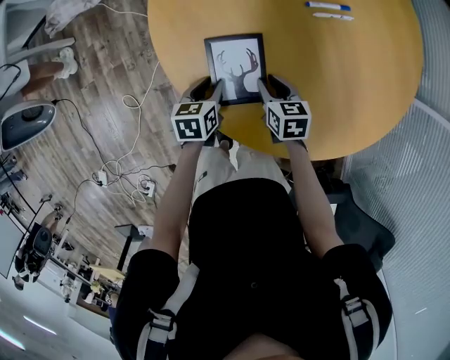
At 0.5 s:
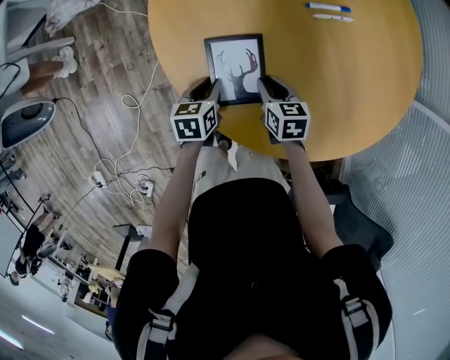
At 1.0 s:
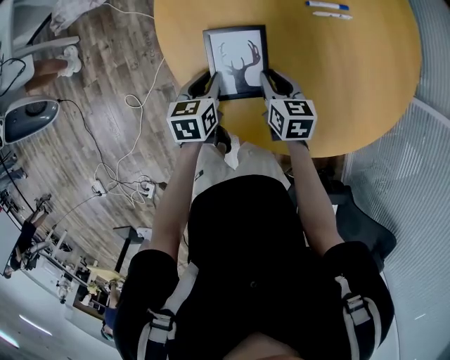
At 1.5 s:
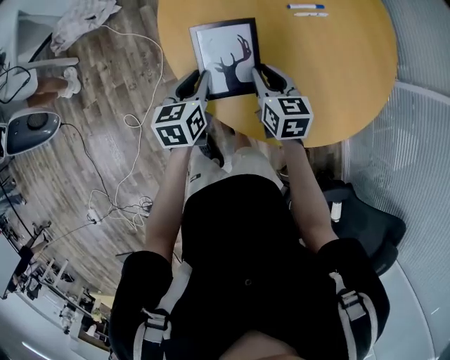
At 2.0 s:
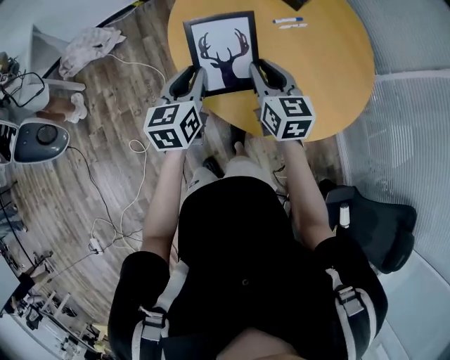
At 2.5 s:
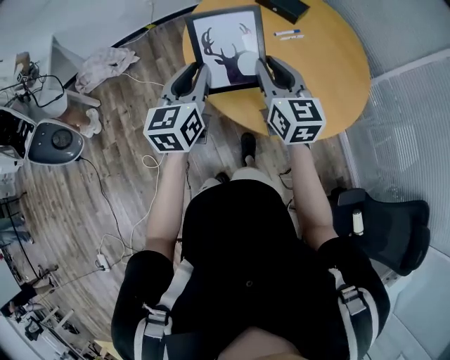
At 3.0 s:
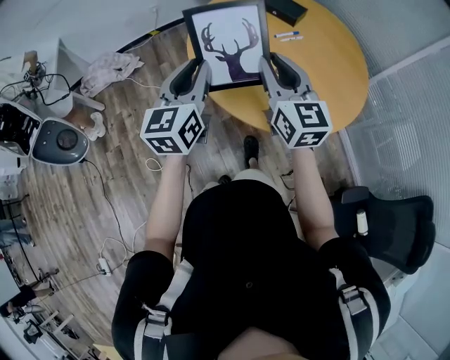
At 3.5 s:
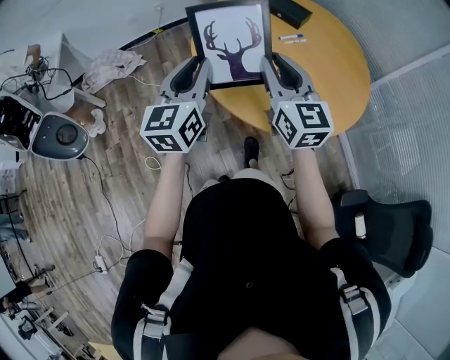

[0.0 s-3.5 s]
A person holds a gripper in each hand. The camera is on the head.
0.0 to 2.0 s: The grippers both shift upward by roughly 30 cm. The left gripper points its fingers roughly 30 degrees further upward. Meanwhile the right gripper rotates some 30 degrees.
2.0 to 3.5 s: The two grippers go about 20 cm upward and backward. The left gripper rotates approximately 20 degrees; the right gripper turns by roughly 20 degrees.

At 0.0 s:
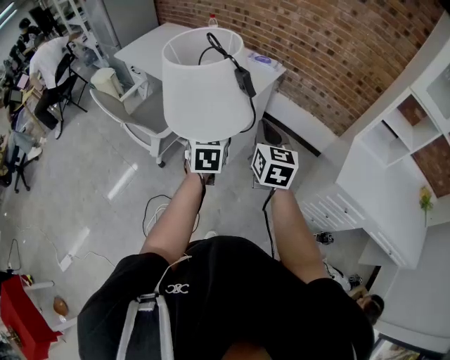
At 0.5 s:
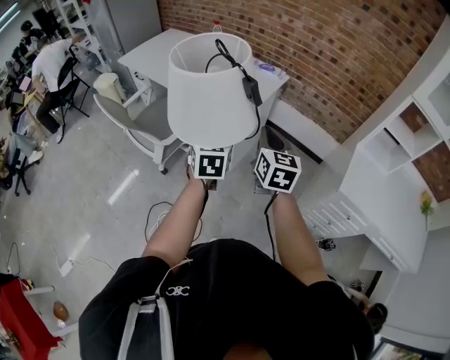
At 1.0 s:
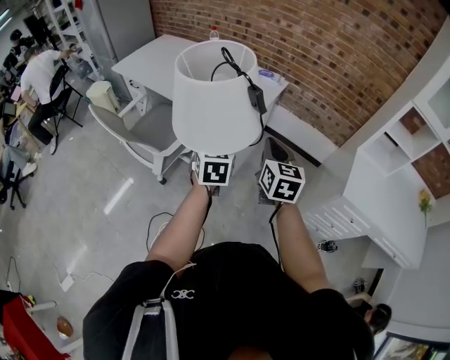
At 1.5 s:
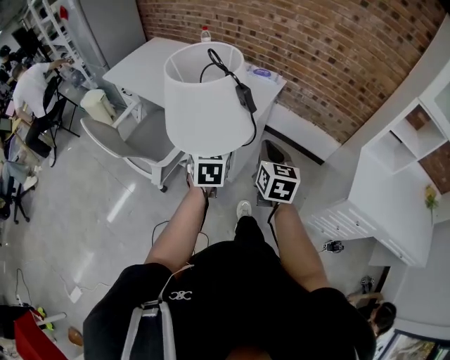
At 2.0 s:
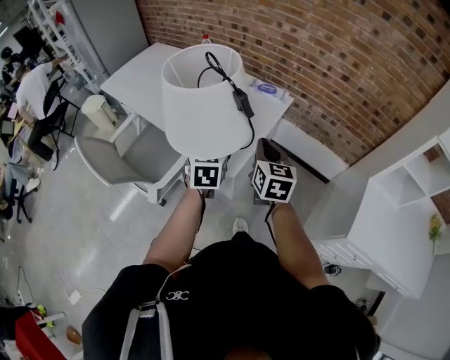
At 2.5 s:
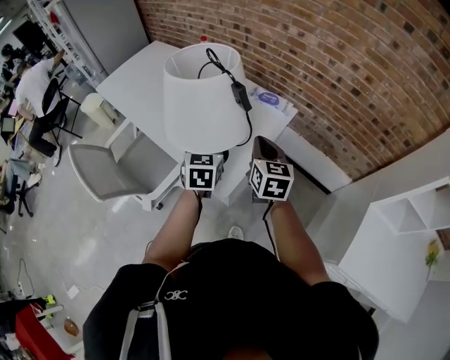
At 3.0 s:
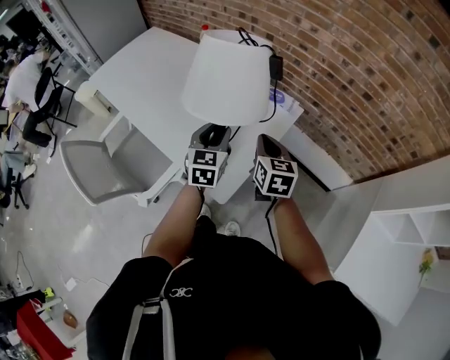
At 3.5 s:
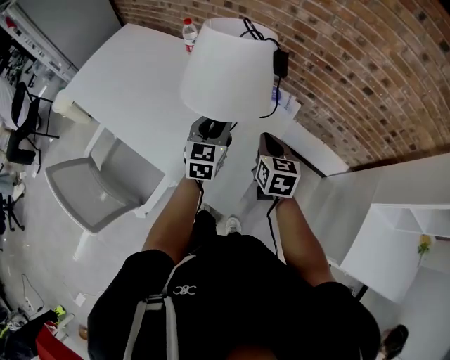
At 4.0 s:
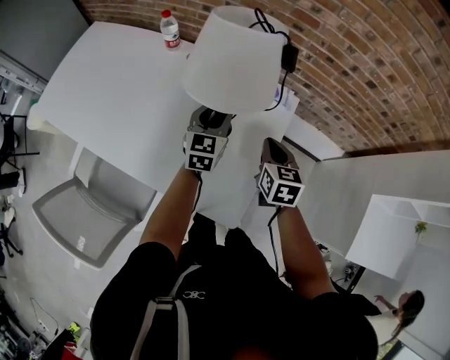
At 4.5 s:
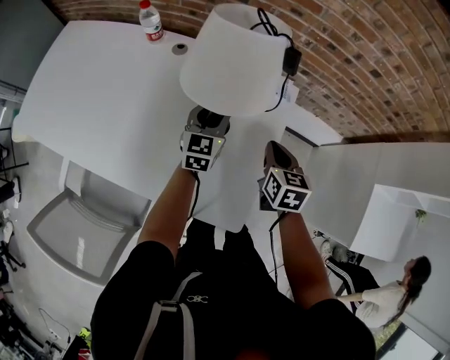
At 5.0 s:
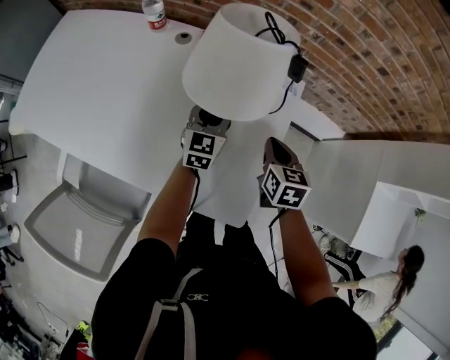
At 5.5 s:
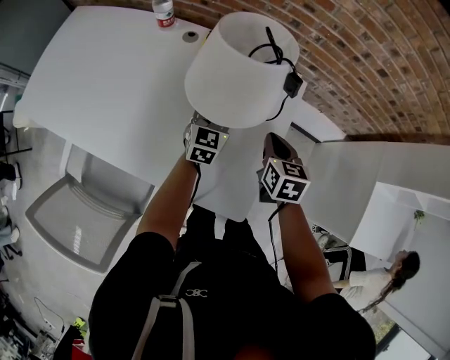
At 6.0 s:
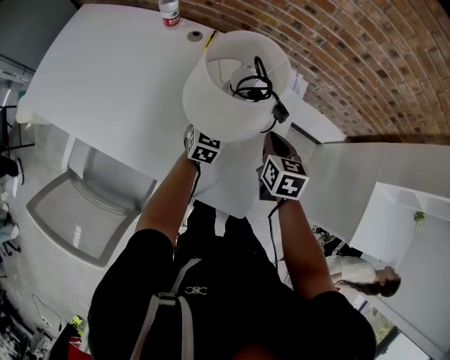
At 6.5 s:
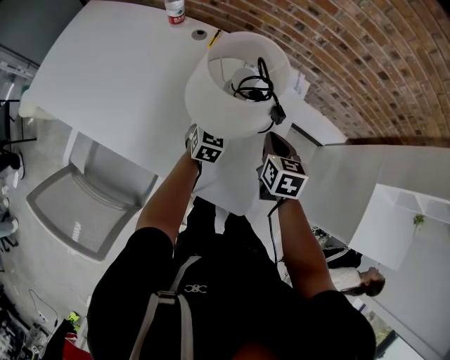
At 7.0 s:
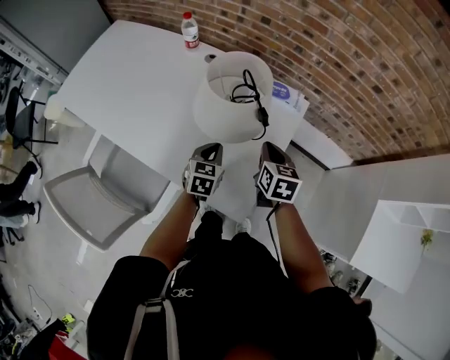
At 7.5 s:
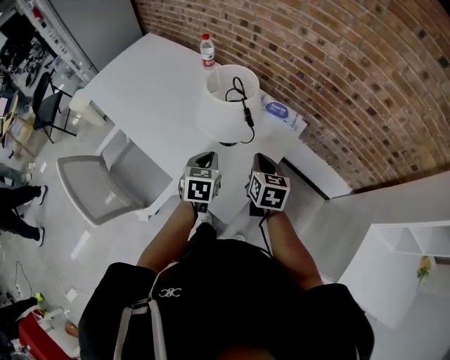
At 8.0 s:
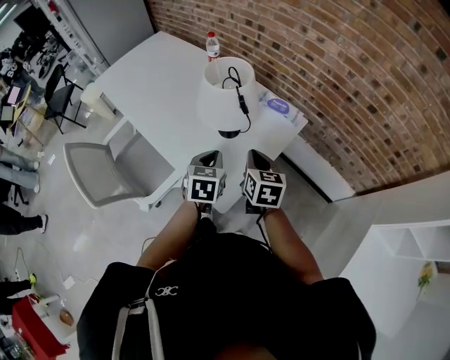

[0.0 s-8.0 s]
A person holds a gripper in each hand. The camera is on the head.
0.0 to 2.0 s: The two grippers go approximately 25 cm forward.
2.0 to 4.0 s: The left gripper is displaced forward by some 35 cm, and turns by approximately 20 degrees; the right gripper is displaced forward and downward by approximately 30 cm, and swivels approximately 20 degrees.
4.0 to 6.0 s: The left gripper moves downward, roughly 10 cm.
6.0 to 8.0 s: The right gripper shifts some 10 cm upward, and changes its angle by roughly 20 degrees, while the left gripper changes place by approximately 25 cm, changes its angle by some 30 degrees, and closes its fingers.

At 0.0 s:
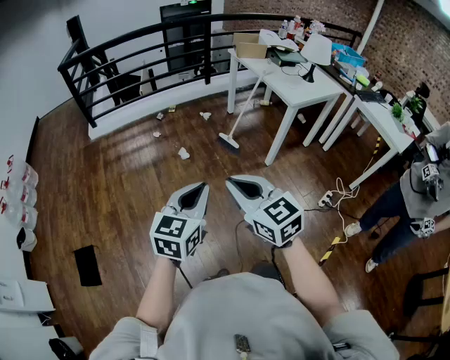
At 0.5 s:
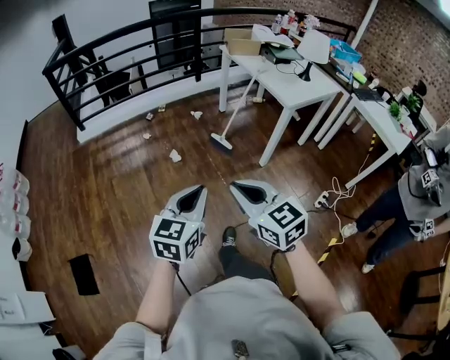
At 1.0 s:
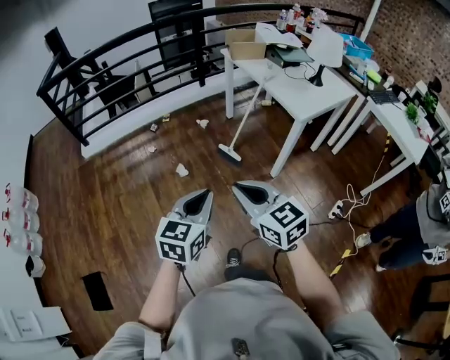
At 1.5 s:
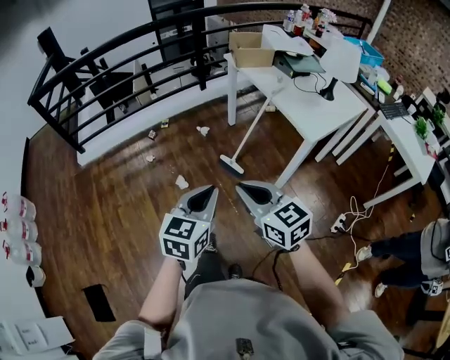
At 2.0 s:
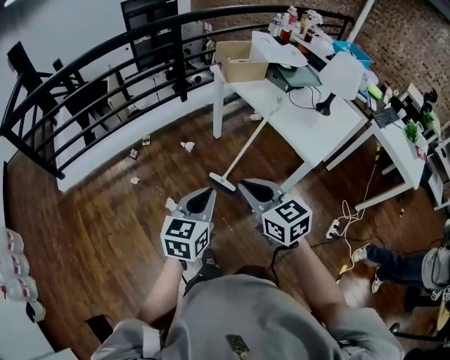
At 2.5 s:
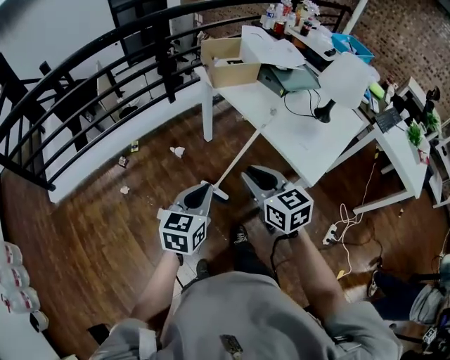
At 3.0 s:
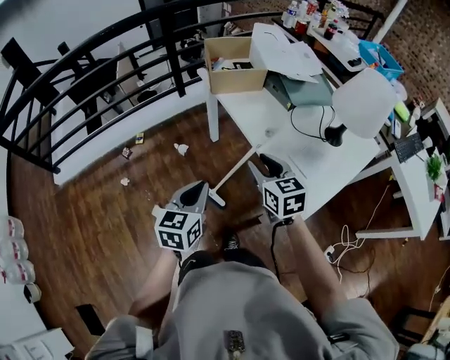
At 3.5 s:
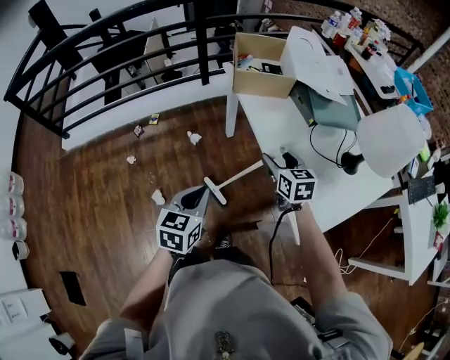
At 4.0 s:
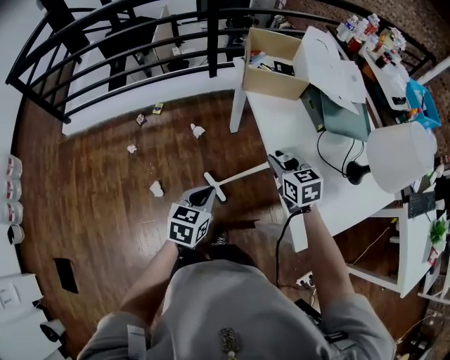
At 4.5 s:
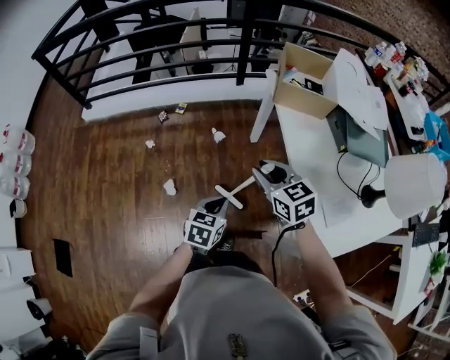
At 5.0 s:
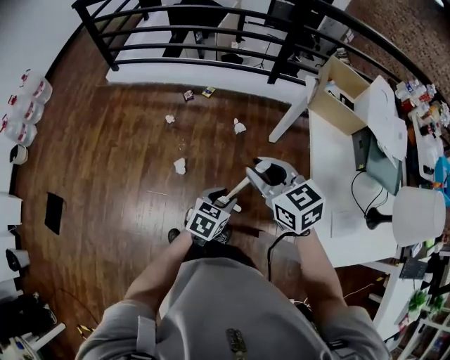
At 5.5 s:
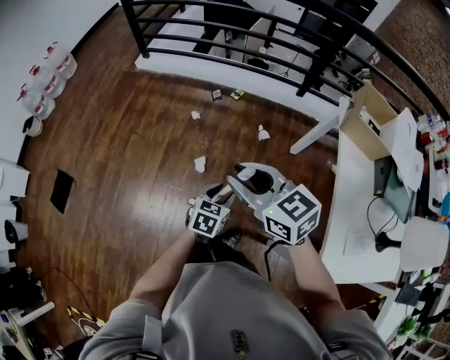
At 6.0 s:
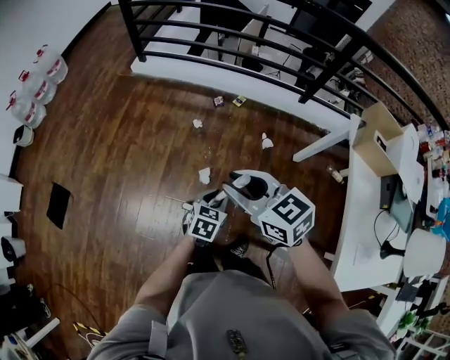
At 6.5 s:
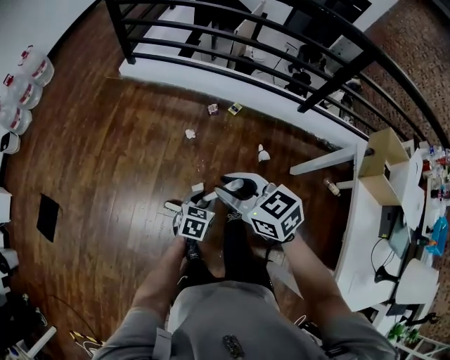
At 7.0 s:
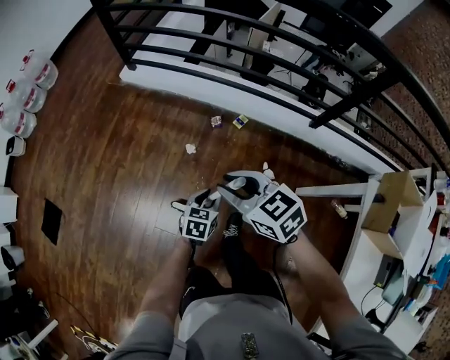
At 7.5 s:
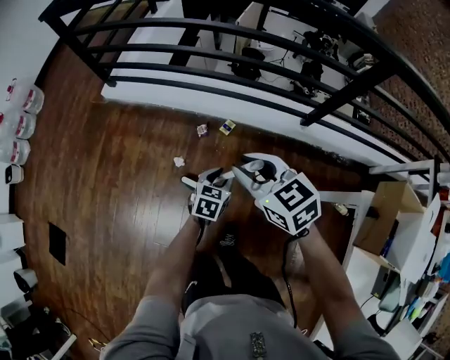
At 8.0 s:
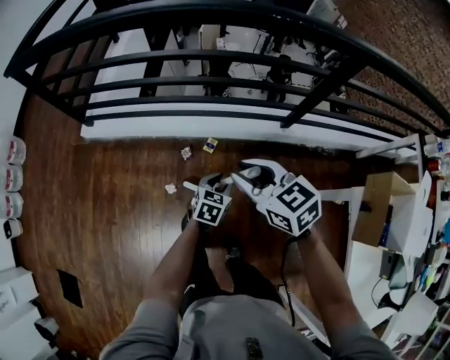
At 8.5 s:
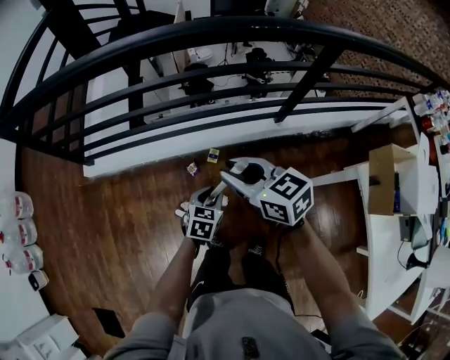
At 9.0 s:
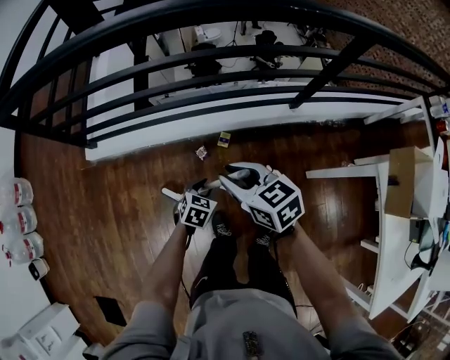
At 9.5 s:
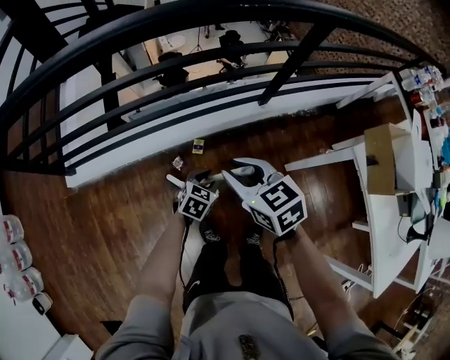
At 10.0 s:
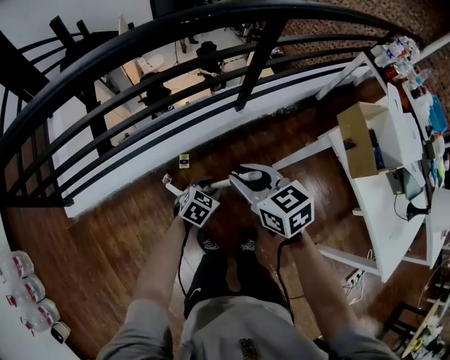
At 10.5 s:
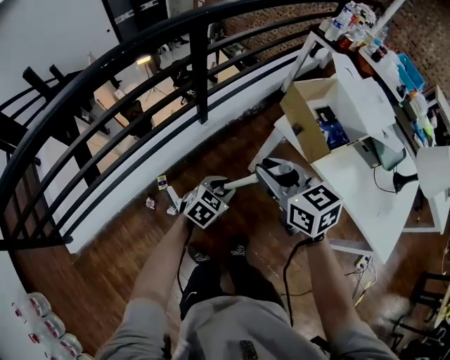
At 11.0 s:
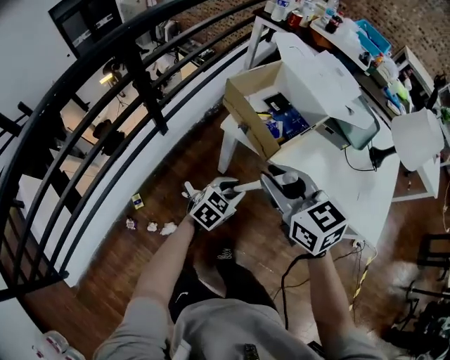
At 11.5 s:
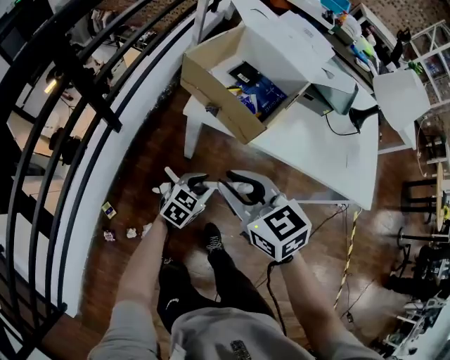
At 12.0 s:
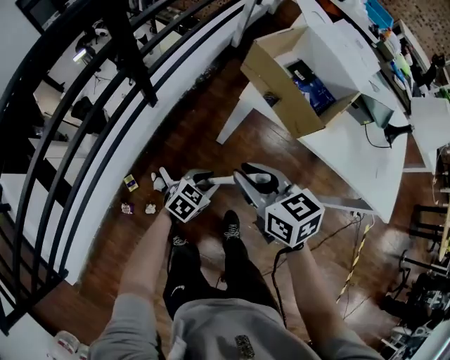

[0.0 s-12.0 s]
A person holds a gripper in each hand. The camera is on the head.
0.0 to 2.0 s: The pair of grippers is taken forward, roughly 60 cm.
2.0 to 4.0 s: Both grippers travel together forward, to the right and downward, some 40 cm. The right gripper opens. Meanwhile the left gripper rotates some 20 degrees.
4.0 to 6.0 s: The right gripper changes place by roughly 50 cm, and rotates about 50 degrees, while the left gripper moves approximately 35 cm, swivels approximately 20 degrees, and opens up.
6.0 to 8.0 s: The pair of grippers is taken forward and to the right, about 50 cm.
8.0 to 10.0 s: The right gripper moves some 5 cm downward and comes back, and changes its angle by roughly 40 degrees, while the left gripper moves roughly 5 cm downward and comes back, and changes its angle by about 40 degrees.
10.0 to 12.0 s: The right gripper moves some 10 cm upward and comes back, and turns by roughly 40 degrees. The left gripper travels upward and back again, roughly 10 cm each way, and changes its angle by some 40 degrees.

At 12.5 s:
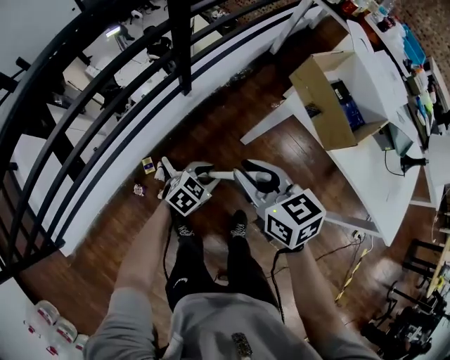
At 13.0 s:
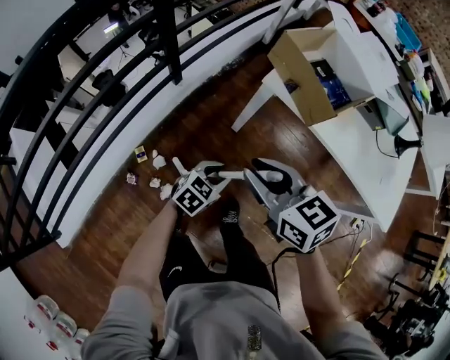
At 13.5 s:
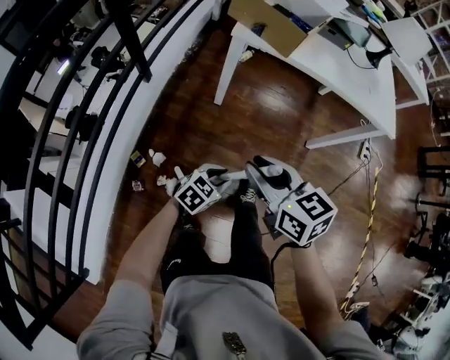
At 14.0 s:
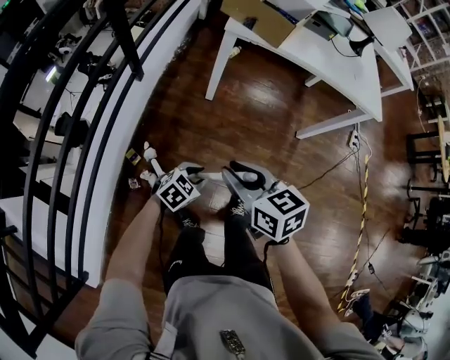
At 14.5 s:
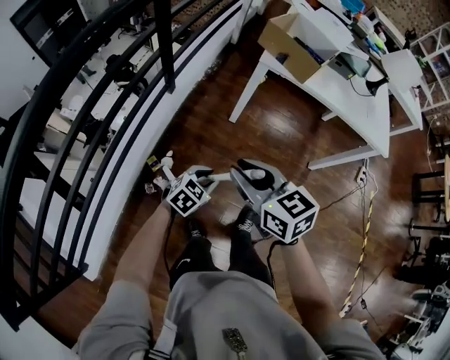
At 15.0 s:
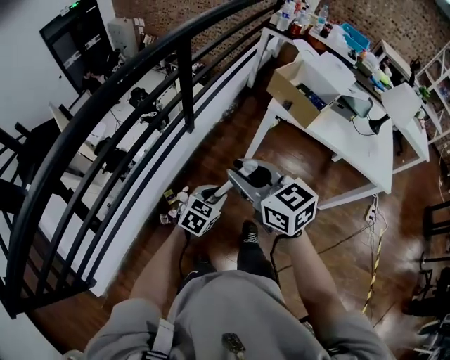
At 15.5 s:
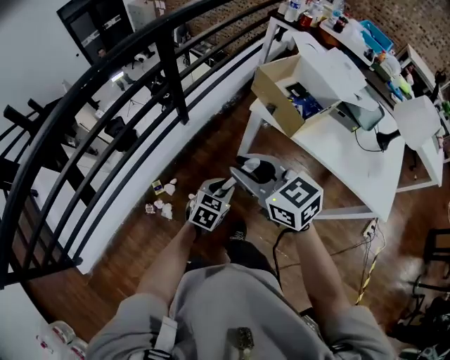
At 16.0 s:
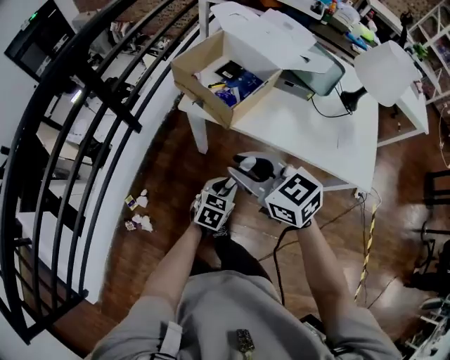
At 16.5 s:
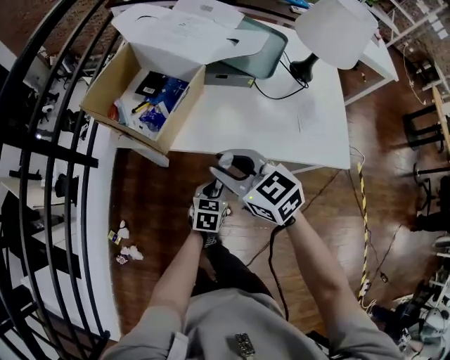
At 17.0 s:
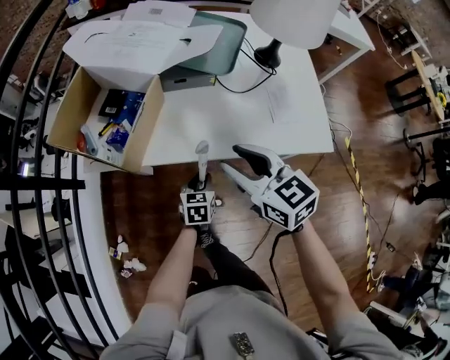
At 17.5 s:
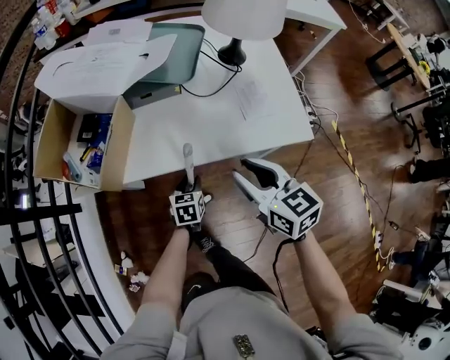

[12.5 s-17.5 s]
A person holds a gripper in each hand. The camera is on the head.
12.5 to 15.0 s: The left gripper shifts by approximately 20 cm. Meanwhile the right gripper ends up about 25 cm from where it was.
15.0 to 17.5 s: The two grippers travel together, approximately 60 cm. The right gripper rotates roughly 50 degrees.
